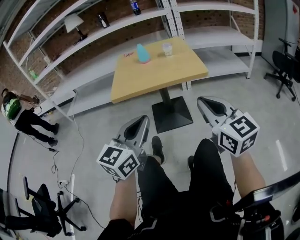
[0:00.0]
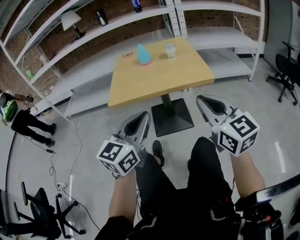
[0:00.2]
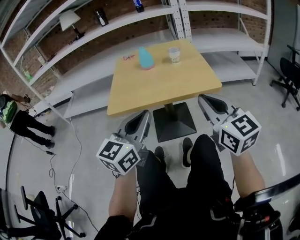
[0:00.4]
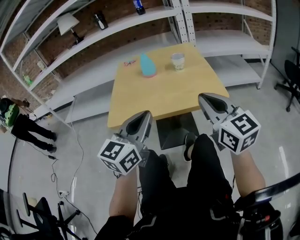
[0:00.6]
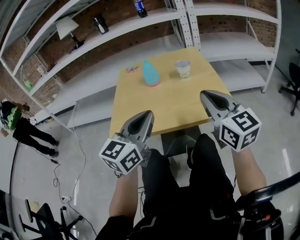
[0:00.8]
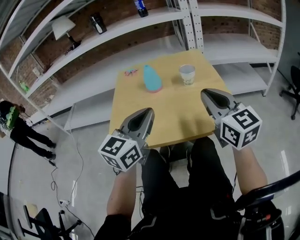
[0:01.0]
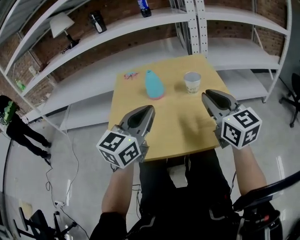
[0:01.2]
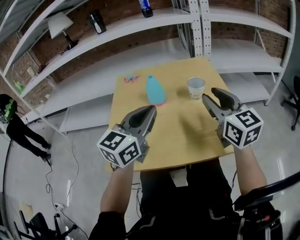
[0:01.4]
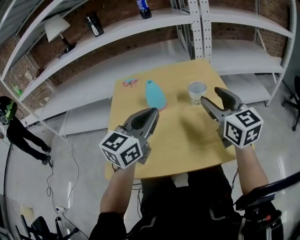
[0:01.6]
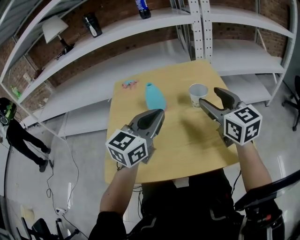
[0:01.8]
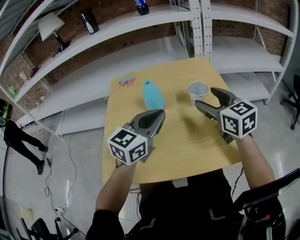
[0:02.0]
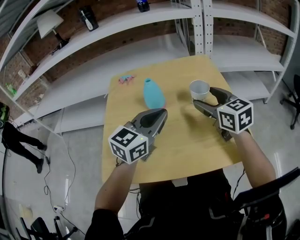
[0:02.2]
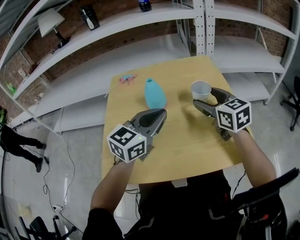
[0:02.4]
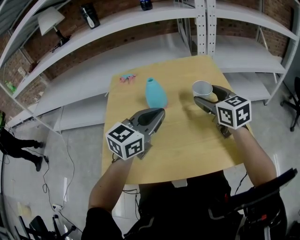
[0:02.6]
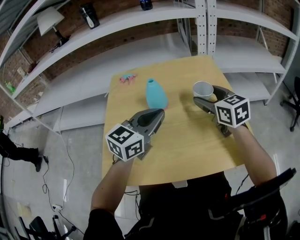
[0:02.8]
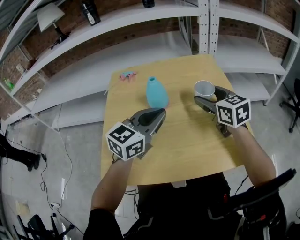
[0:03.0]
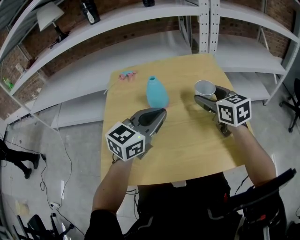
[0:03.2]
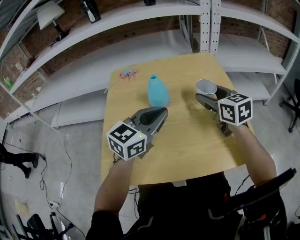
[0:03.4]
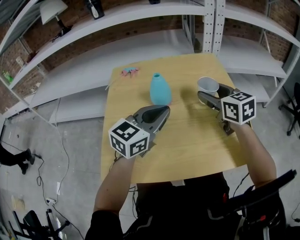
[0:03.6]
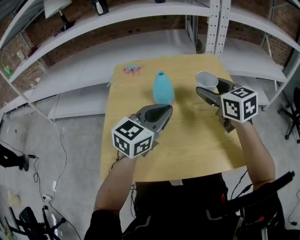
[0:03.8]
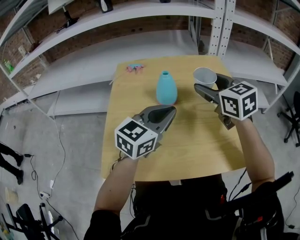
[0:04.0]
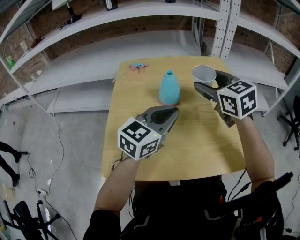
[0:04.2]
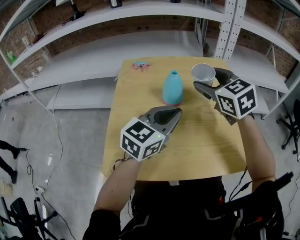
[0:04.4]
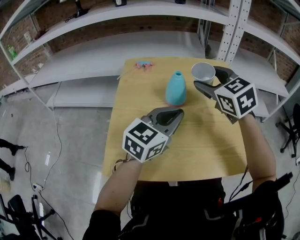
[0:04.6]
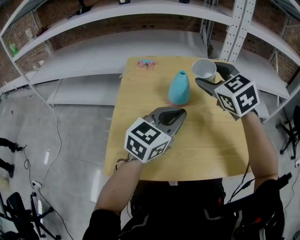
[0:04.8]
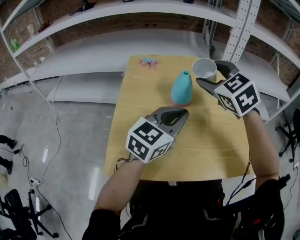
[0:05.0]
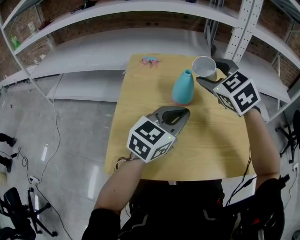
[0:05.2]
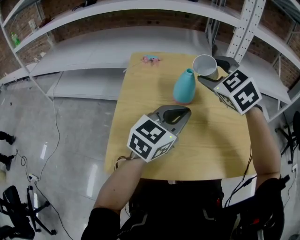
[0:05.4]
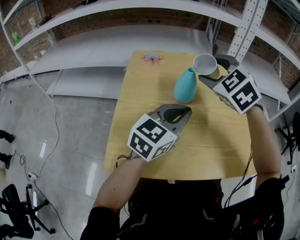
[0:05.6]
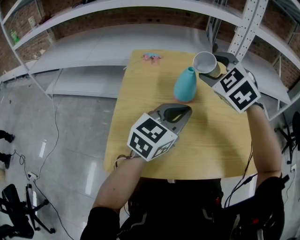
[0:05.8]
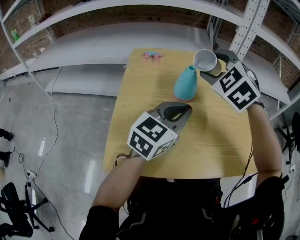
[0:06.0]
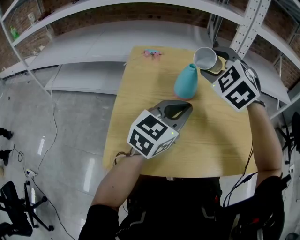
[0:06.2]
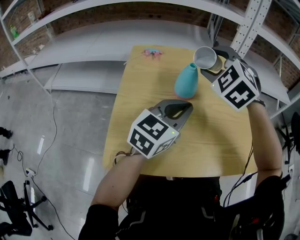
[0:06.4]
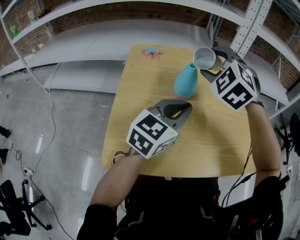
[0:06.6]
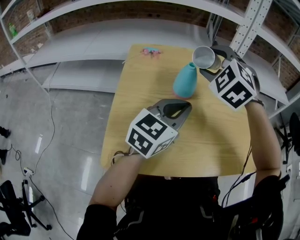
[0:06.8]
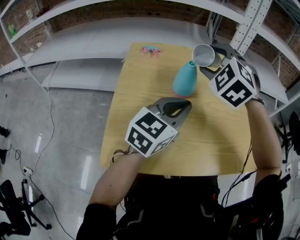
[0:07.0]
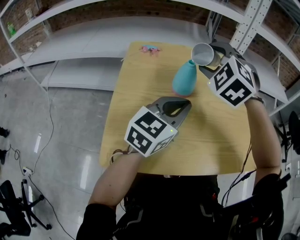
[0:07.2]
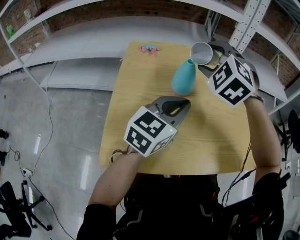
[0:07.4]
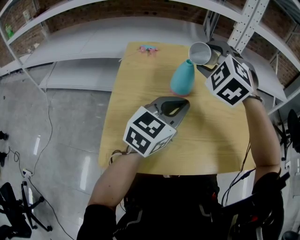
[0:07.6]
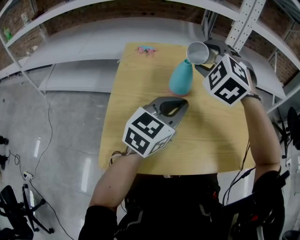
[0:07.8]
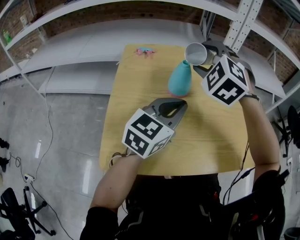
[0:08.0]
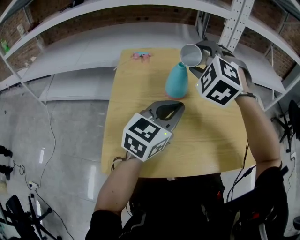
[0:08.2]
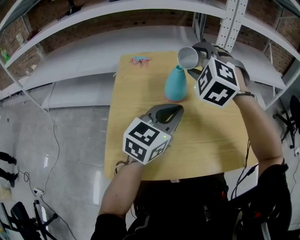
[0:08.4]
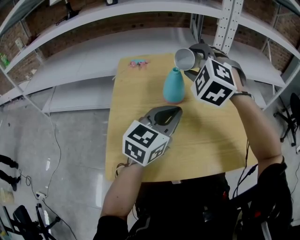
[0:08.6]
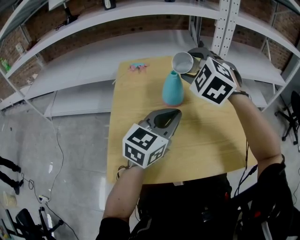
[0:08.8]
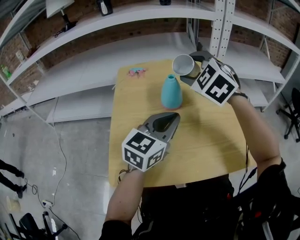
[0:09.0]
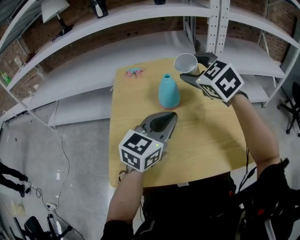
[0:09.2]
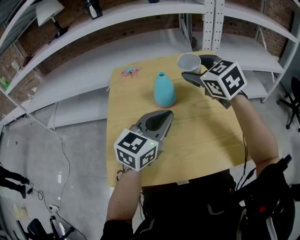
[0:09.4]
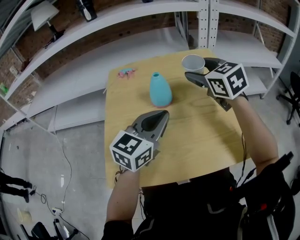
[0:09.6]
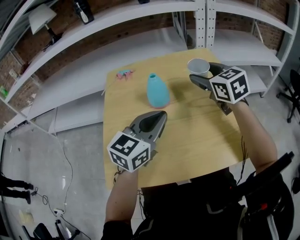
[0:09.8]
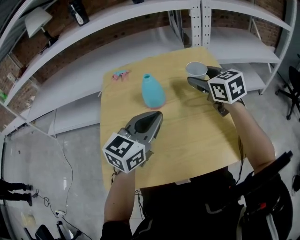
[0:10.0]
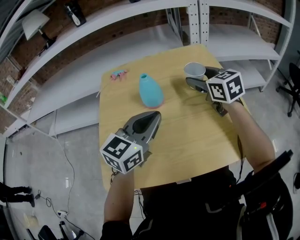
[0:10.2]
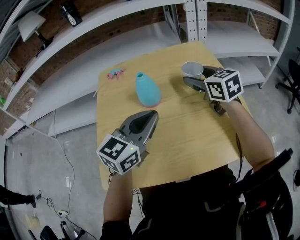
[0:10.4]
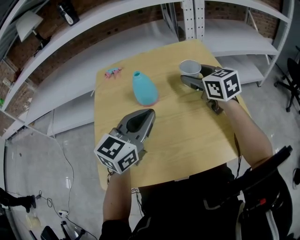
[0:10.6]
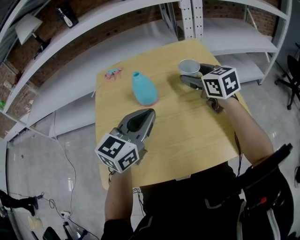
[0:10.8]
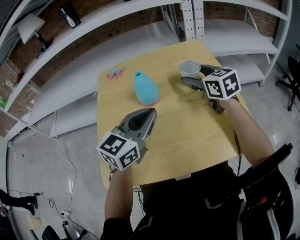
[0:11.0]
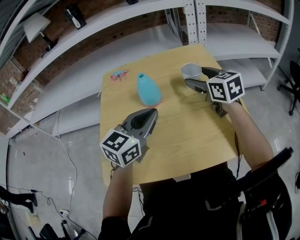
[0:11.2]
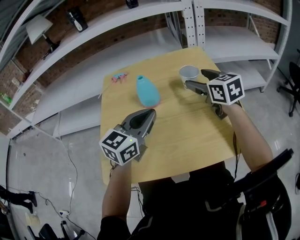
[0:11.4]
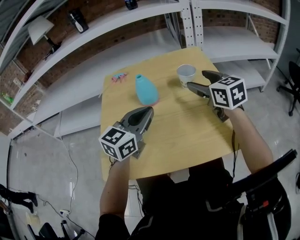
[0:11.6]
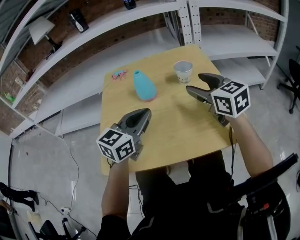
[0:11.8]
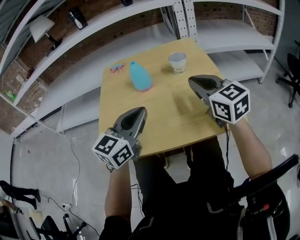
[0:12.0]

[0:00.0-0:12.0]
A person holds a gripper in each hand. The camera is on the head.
0:00.0 to 0:01.6: Both grippers are carried forward, roughly 50 cm. The right gripper opens up.
0:01.6 to 0:03.0: The right gripper moves forward and downward, about 10 cm. Meanwhile the left gripper moves downward, roughly 5 cm.
0:03.0 to 0:04.4: The right gripper is displaced to the left and upward by some 10 cm, and swivels approximately 20 degrees.
0:04.4 to 0:06.0: The right gripper moves to the left, roughly 5 cm, and rotates approximately 40 degrees.
0:06.0 to 0:09.0: The grippers make only small movements.
0:09.0 to 0:10.4: The right gripper is displaced to the right and downward by about 15 cm, and rolls clockwise, seen from behind, by approximately 50 degrees.
0:10.4 to 0:12.0: The left gripper goes about 10 cm backward, while the right gripper is displaced backward by some 15 cm, and closes.

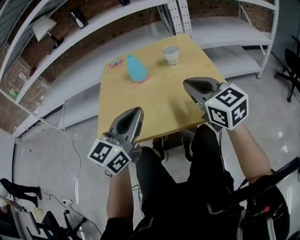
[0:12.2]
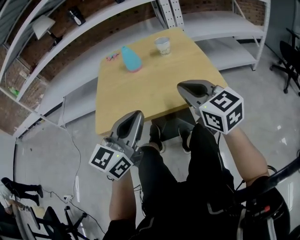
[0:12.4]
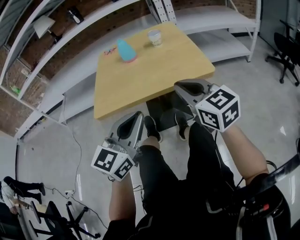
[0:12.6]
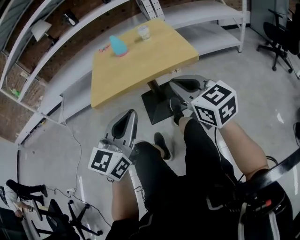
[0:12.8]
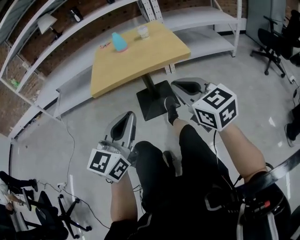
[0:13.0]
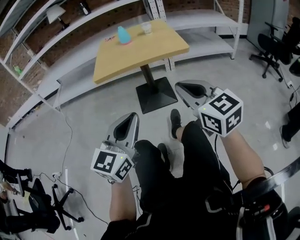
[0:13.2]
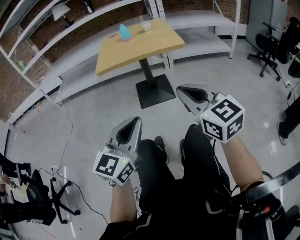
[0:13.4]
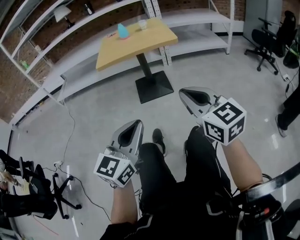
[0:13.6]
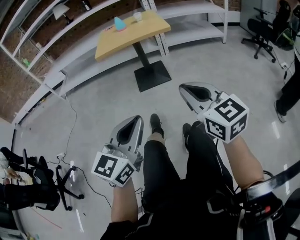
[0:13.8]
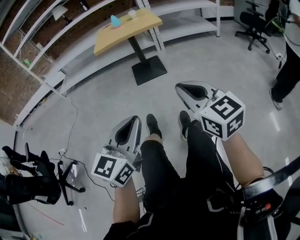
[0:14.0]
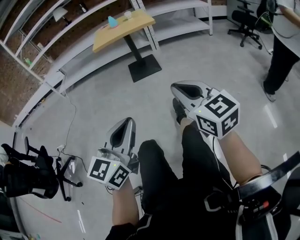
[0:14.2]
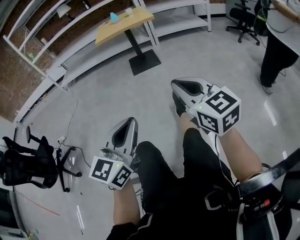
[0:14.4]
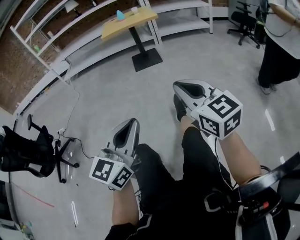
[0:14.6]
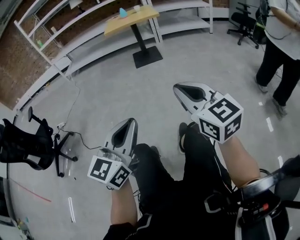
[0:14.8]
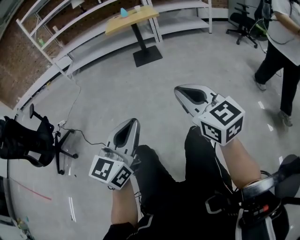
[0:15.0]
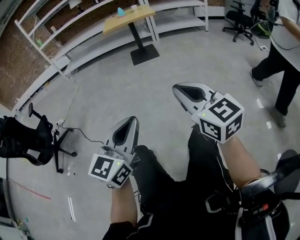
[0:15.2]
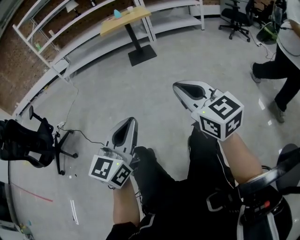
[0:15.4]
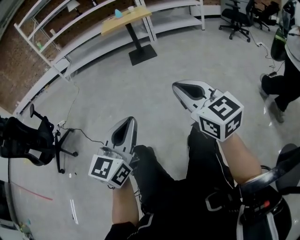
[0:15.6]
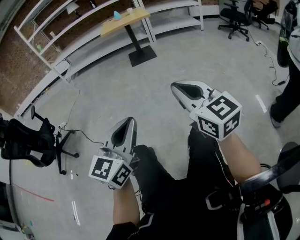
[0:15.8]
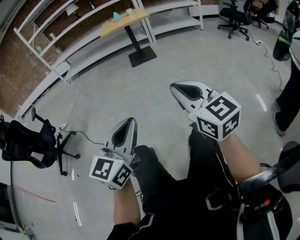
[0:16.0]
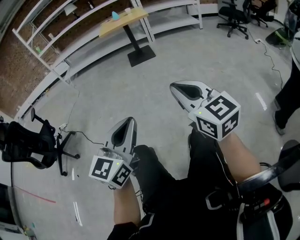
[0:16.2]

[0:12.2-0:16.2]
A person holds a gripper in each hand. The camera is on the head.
0:12.2 to 0:13.6: Both grippers are carried backward, approximately 60 cm.
0:13.6 to 0:14.8: The two grippers travel together, backward, some 60 cm.
0:14.8 to 0:16.2: Both grippers travel together backward, roughly 10 cm.

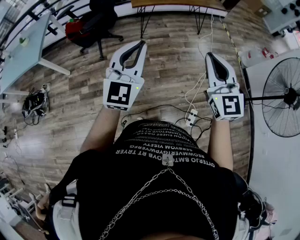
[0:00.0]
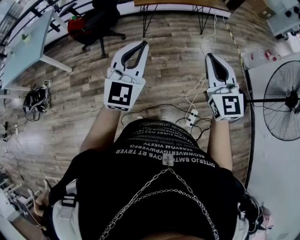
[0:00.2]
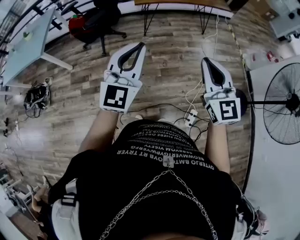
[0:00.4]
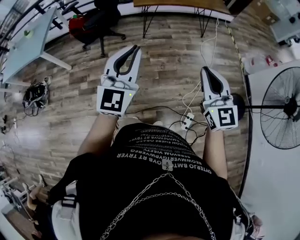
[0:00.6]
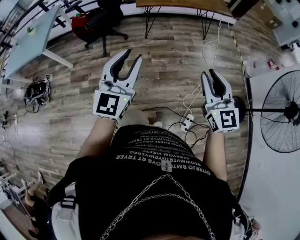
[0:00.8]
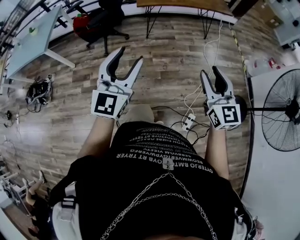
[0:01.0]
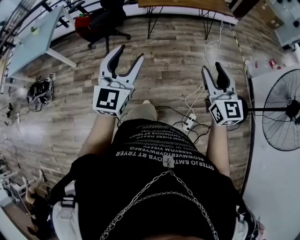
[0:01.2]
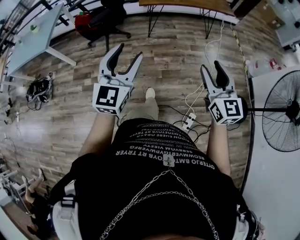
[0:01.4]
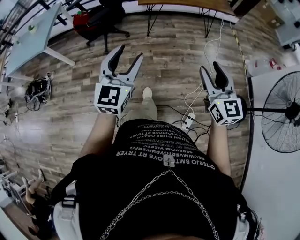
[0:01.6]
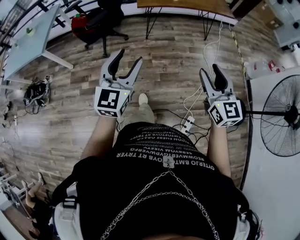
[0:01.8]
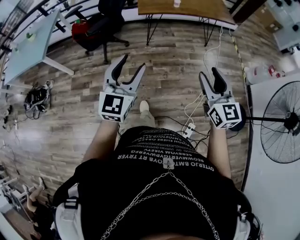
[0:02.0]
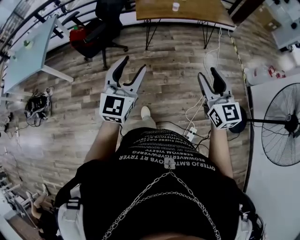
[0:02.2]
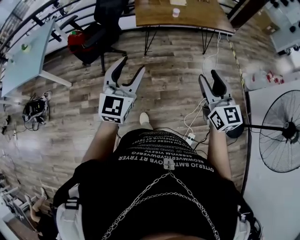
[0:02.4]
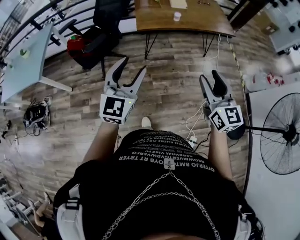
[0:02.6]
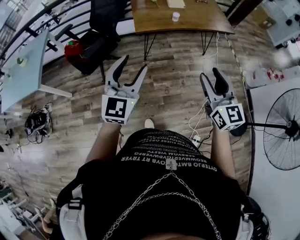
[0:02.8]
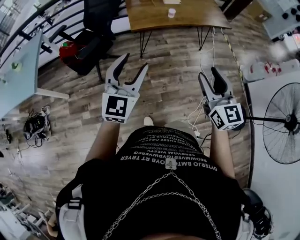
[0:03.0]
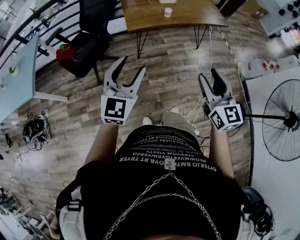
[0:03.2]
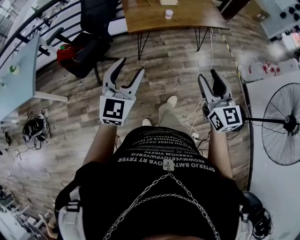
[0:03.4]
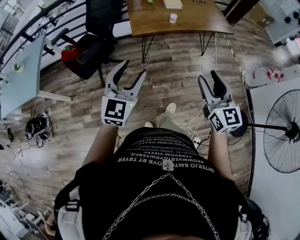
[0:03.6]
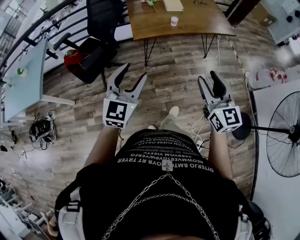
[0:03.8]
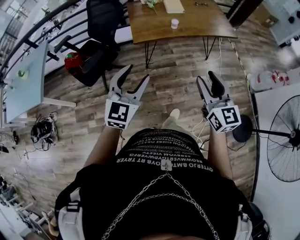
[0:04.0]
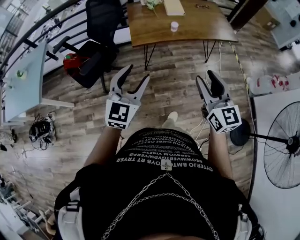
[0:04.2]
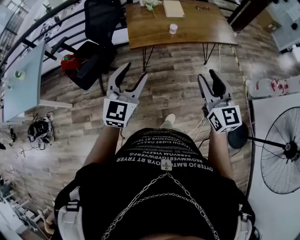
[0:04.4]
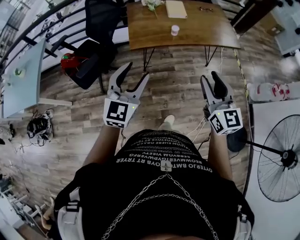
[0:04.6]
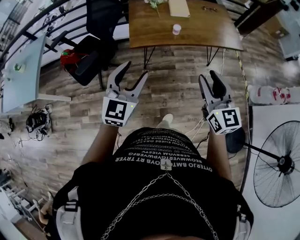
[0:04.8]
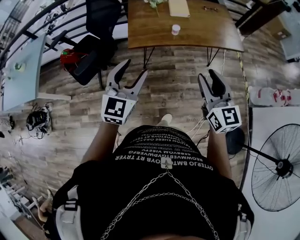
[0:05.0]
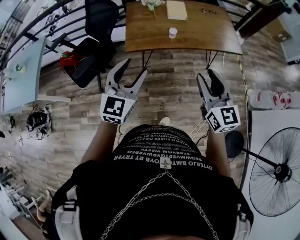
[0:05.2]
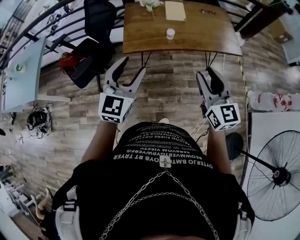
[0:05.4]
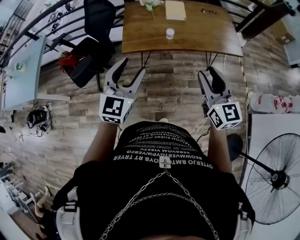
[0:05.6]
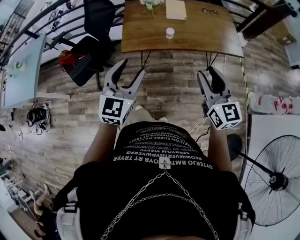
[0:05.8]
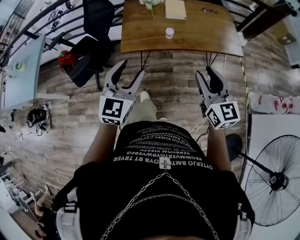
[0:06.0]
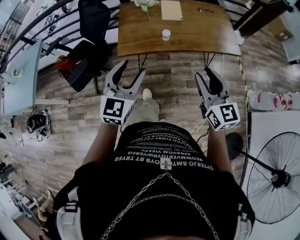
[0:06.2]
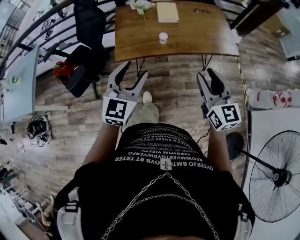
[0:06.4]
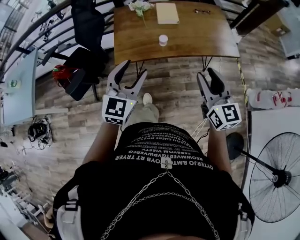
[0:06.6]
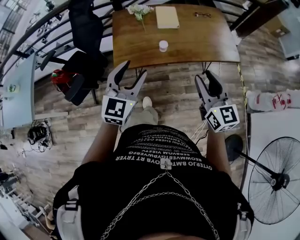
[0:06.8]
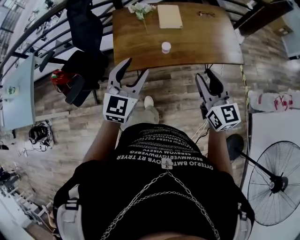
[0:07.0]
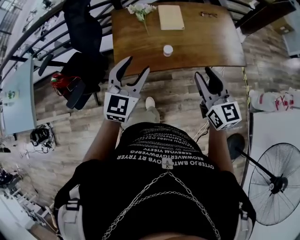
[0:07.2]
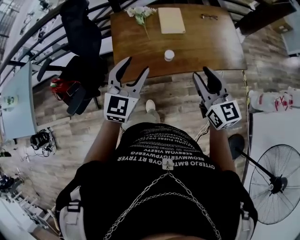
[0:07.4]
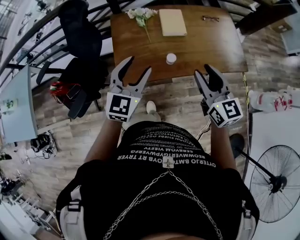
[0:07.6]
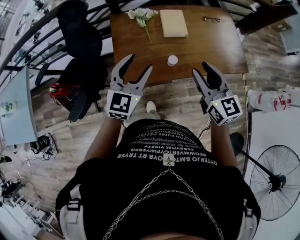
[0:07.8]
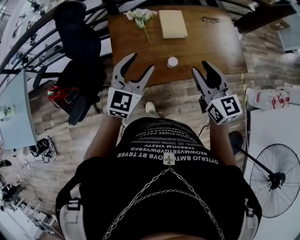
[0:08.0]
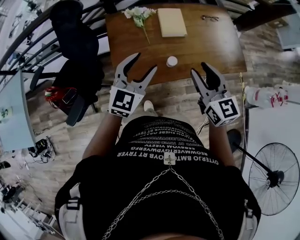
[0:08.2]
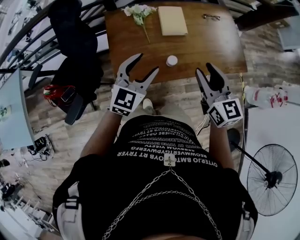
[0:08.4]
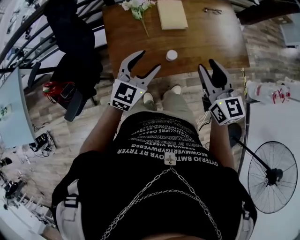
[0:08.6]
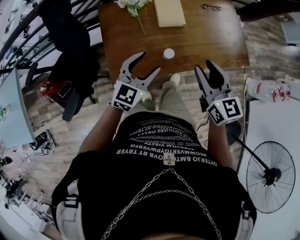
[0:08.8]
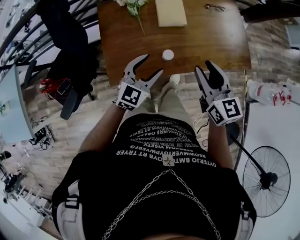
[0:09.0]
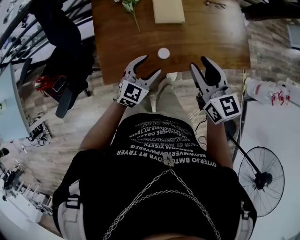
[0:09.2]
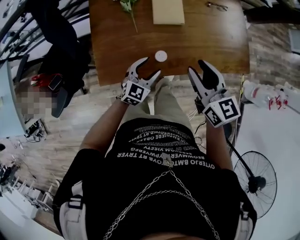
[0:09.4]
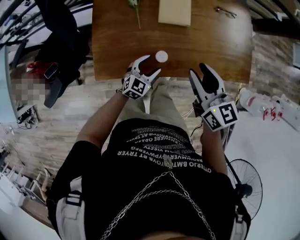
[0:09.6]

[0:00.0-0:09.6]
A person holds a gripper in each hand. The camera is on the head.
0:00.0 to 0:01.6: The right gripper is displaced to the right and downward by roughly 10 cm, and opens. Meanwhile the left gripper opens its fingers.
0:01.6 to 0:03.2: The grippers both shift forward by roughly 25 cm.
0:03.2 to 0:04.8: Both grippers travel together forward, about 20 cm.
0:04.8 to 0:06.4: The left gripper goes roughly 15 cm to the right and forward. Meanwhile the right gripper travels forward and to the right by about 15 cm.
0:06.4 to 0:08.0: The left gripper is displaced forward by approximately 30 cm, while the right gripper is displaced forward and to the left by some 30 cm.
0:08.0 to 0:09.6: The right gripper is displaced downward, forward and to the right by some 15 cm; the left gripper is displaced downward and to the right by roughly 35 cm.
